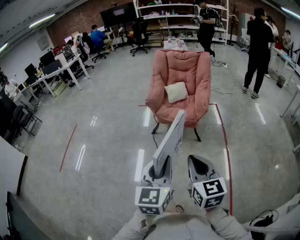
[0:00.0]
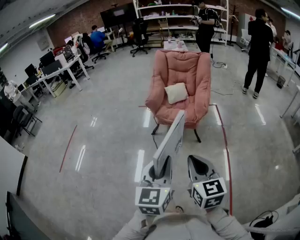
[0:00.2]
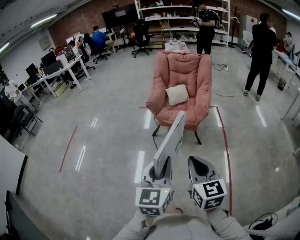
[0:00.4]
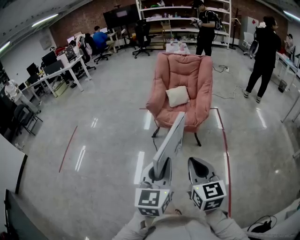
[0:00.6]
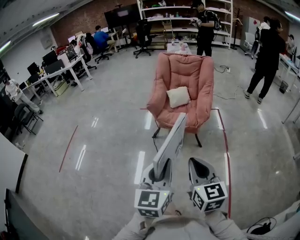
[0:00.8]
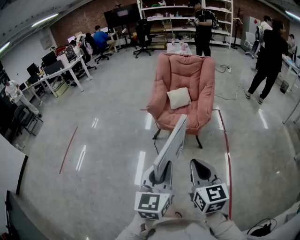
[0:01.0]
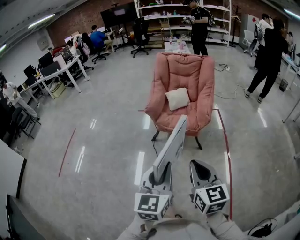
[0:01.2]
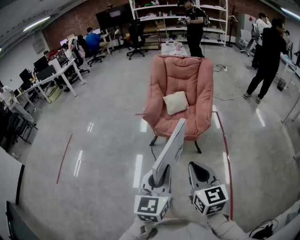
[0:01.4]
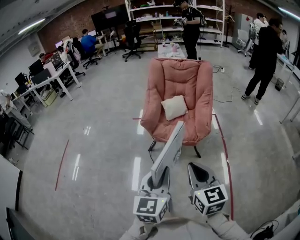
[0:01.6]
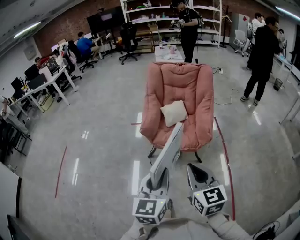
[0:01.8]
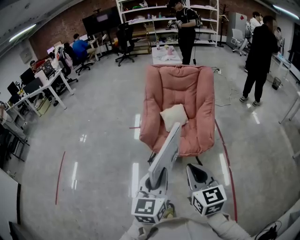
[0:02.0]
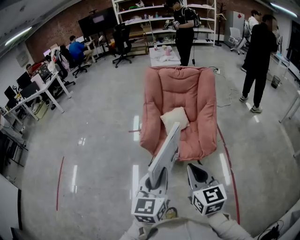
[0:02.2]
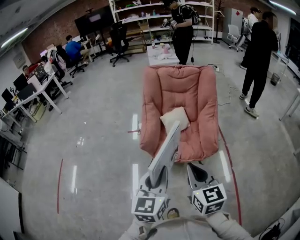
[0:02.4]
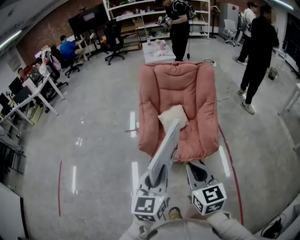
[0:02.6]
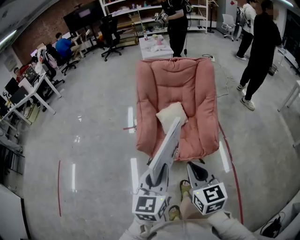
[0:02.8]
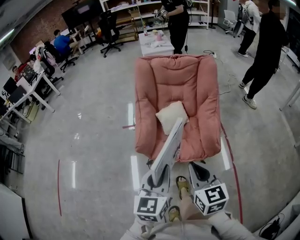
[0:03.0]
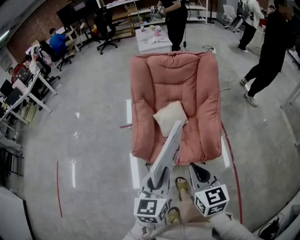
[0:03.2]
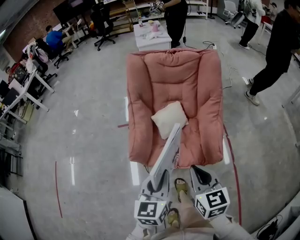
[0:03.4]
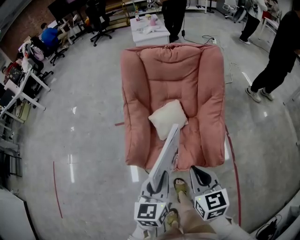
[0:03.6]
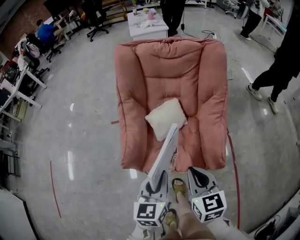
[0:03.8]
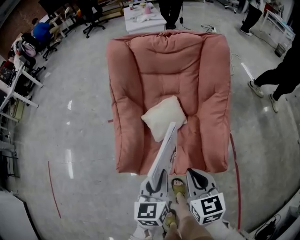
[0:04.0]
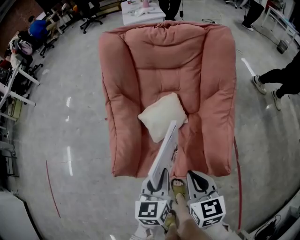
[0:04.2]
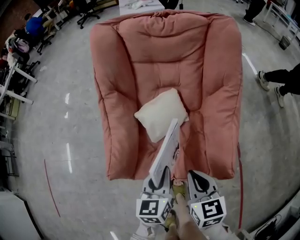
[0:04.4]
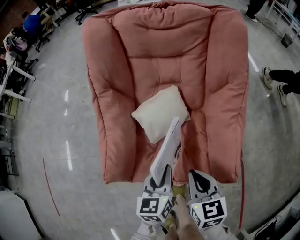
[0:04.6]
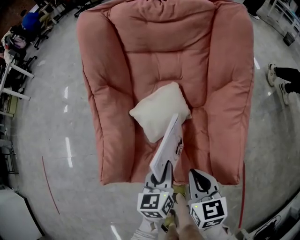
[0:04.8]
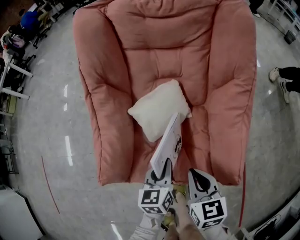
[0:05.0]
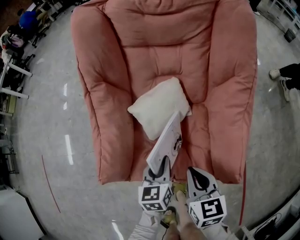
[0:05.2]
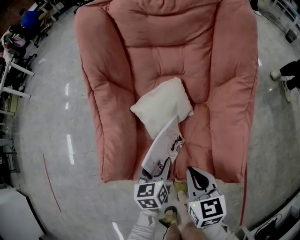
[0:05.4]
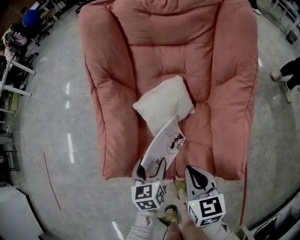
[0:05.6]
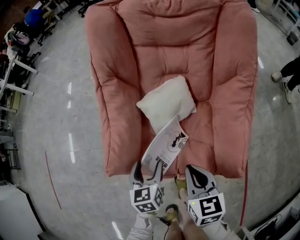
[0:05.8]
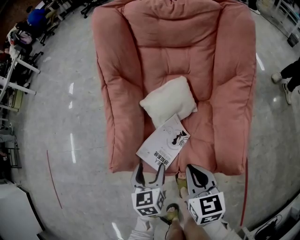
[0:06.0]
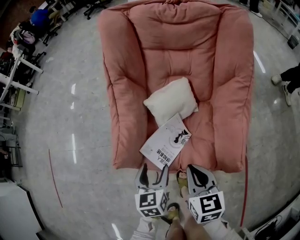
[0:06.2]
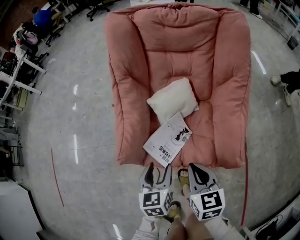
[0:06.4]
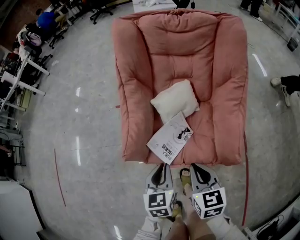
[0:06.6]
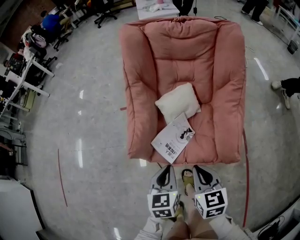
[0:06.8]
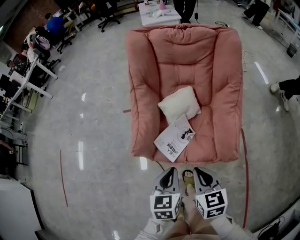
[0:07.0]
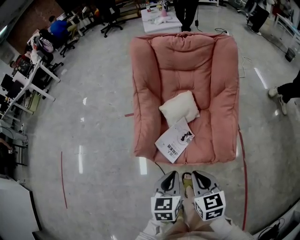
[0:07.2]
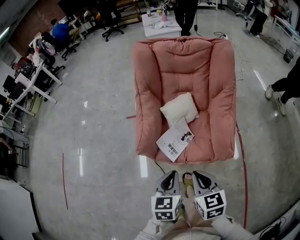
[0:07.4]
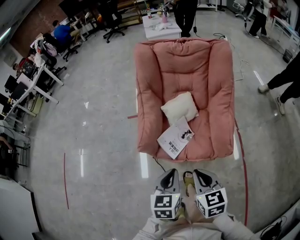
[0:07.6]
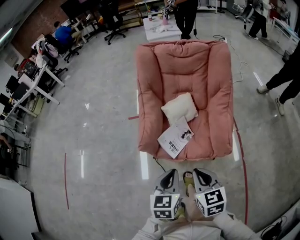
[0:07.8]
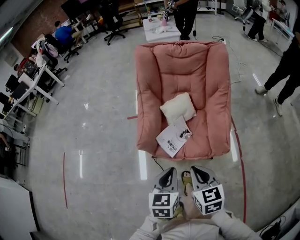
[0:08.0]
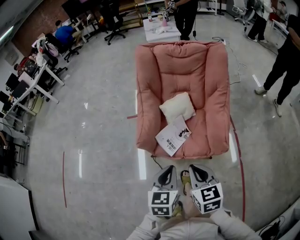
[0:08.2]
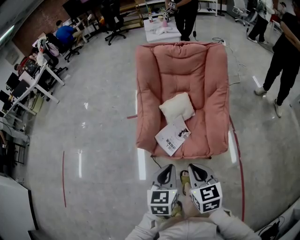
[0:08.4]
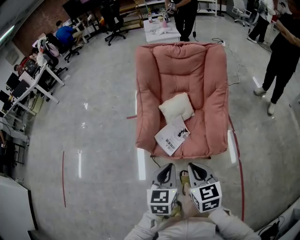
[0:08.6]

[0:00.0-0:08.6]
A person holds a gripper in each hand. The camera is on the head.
0:00.0 to 0:01.4: The grippers both shift forward by about 15 cm.
0:01.4 to 0:02.8: Both grippers travel together forward, roughly 30 cm.
0:02.8 to 0:04.4: The right gripper travels forward and downward by some 35 cm. Meanwhile the left gripper travels downward and forward by some 40 cm, and swivels some 20 degrees.
0:04.4 to 0:05.8: The right gripper moves approximately 5 cm; the left gripper heads downward and to the left, covering about 15 cm, and opens its fingers.
0:05.8 to 0:07.2: The left gripper goes about 25 cm upward and backward, and closes up, while the right gripper moves backward and upward, roughly 20 cm.
0:07.2 to 0:08.6: The two grippers go some 10 cm upward and backward.

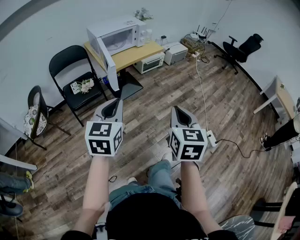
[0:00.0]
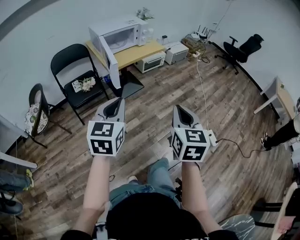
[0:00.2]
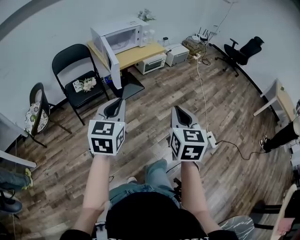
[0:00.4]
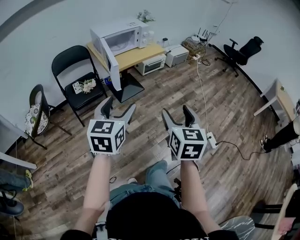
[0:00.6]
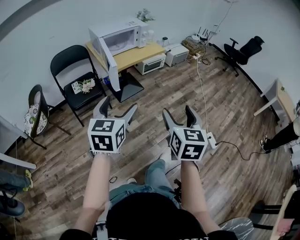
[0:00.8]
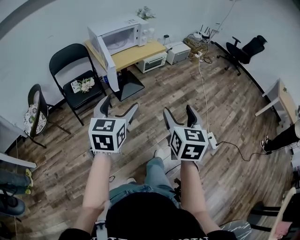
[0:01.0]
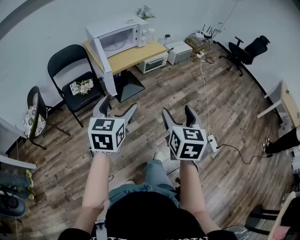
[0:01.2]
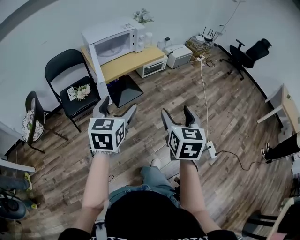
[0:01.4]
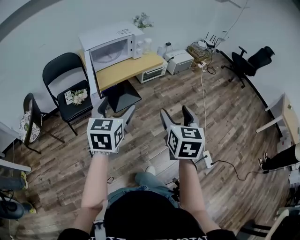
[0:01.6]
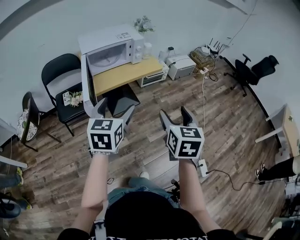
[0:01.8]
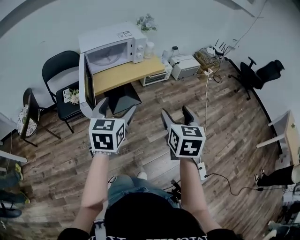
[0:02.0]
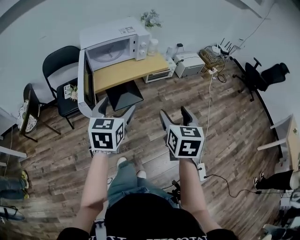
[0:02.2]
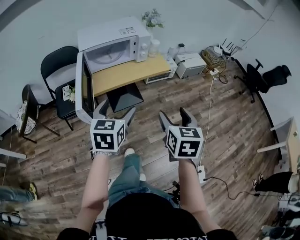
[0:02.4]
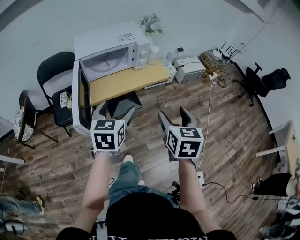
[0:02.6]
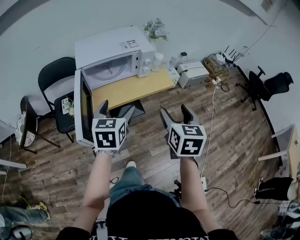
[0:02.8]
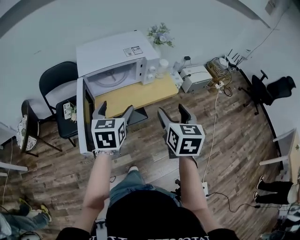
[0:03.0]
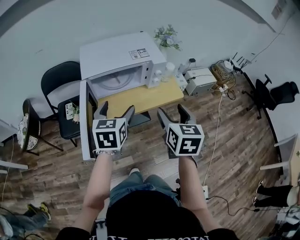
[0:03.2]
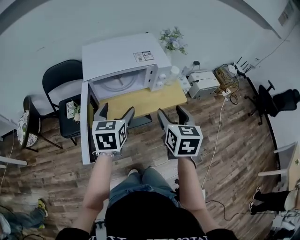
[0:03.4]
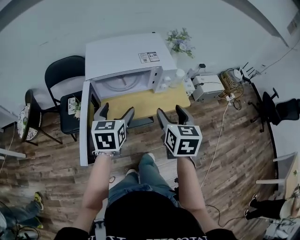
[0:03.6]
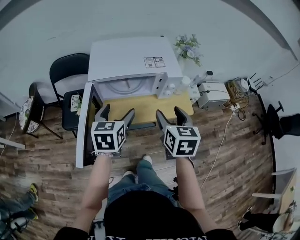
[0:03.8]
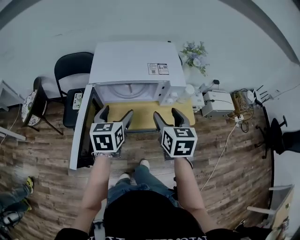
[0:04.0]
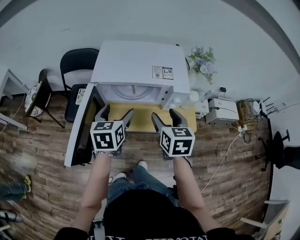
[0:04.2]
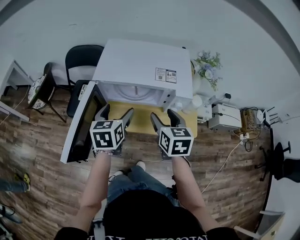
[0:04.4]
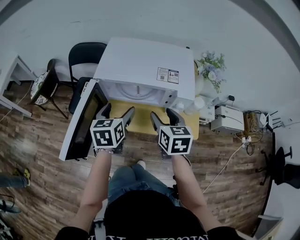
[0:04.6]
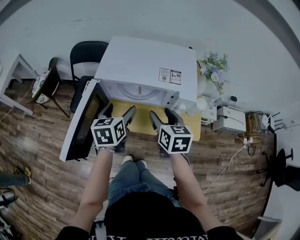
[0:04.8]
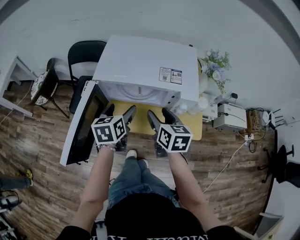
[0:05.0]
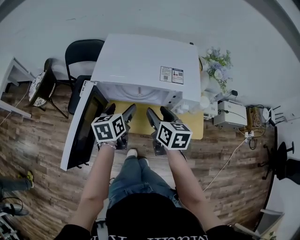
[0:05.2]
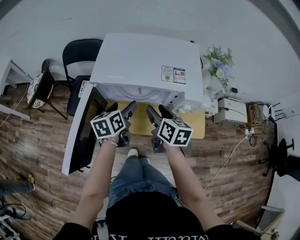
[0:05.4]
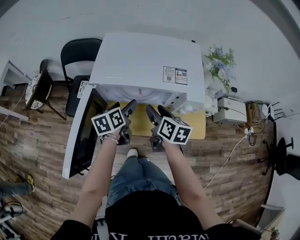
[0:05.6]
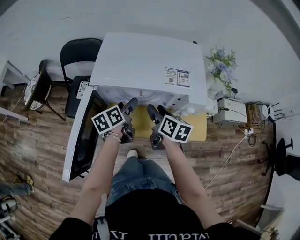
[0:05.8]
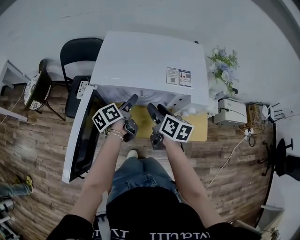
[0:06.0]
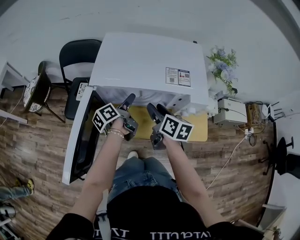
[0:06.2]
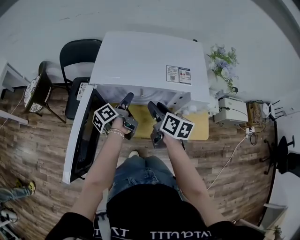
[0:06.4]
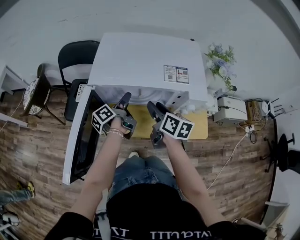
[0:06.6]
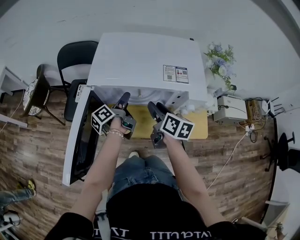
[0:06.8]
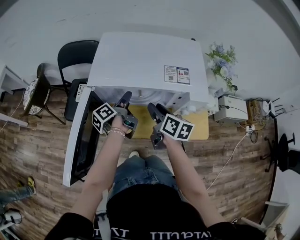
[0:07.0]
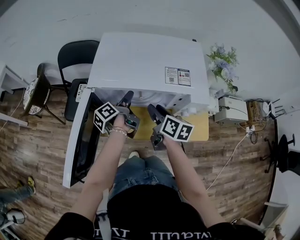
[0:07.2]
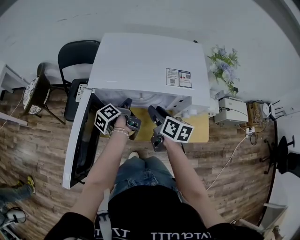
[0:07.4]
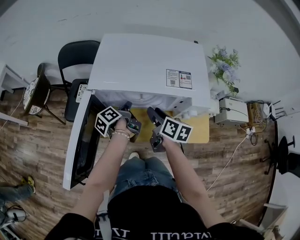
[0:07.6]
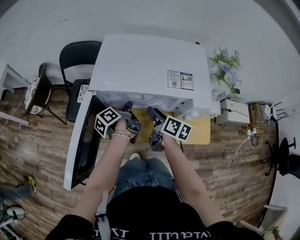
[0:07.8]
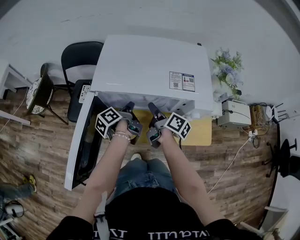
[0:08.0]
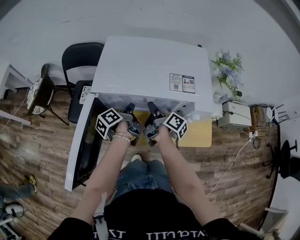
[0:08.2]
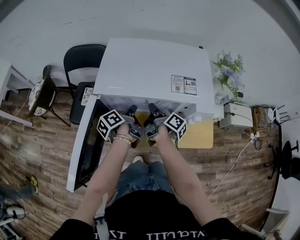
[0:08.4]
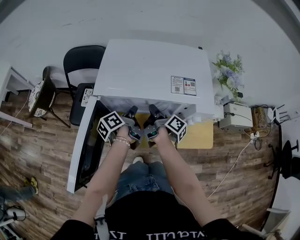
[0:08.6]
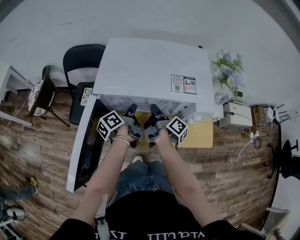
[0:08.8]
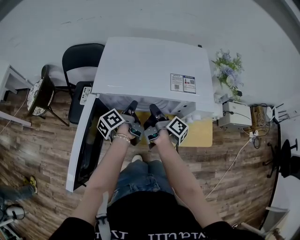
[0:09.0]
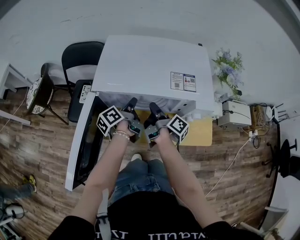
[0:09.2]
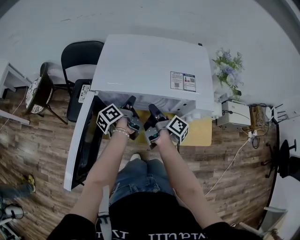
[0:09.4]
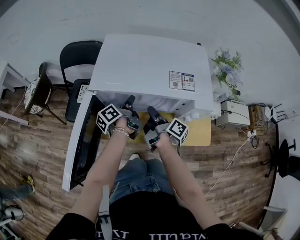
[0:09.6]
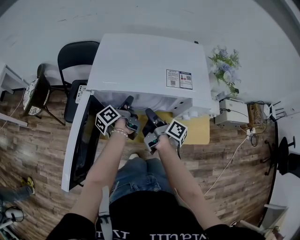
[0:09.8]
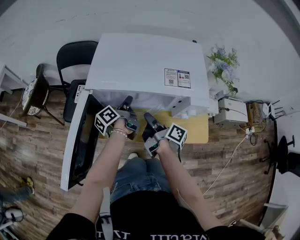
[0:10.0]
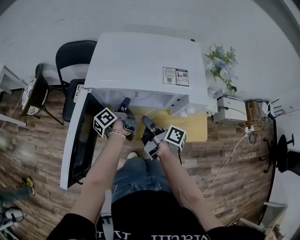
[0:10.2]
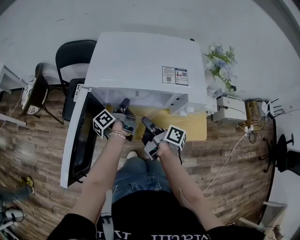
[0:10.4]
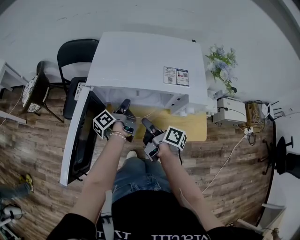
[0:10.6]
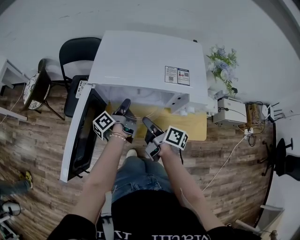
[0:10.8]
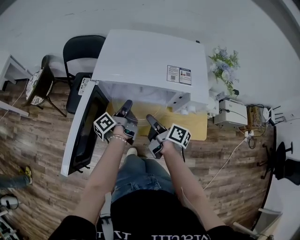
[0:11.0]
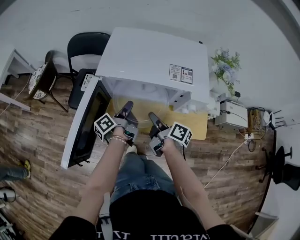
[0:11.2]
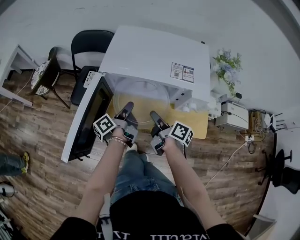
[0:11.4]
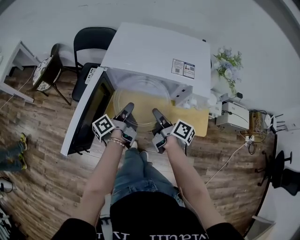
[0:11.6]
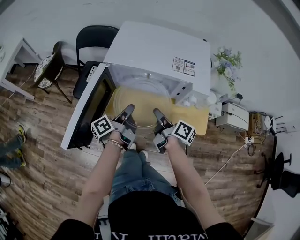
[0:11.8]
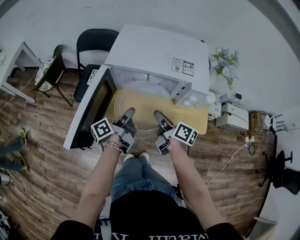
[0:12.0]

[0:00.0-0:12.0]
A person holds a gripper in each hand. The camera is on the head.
0:00.0 to 0:01.6: Both grippers move forward, approximately 20 cm. The right gripper opens its fingers. The left gripper opens.
0:01.6 to 0:03.0: The grippers both shift forward by roughly 30 cm.
0:03.0 to 0:04.4: The left gripper changes place by some 15 cm, and turns by about 30 degrees; the right gripper changes place by about 25 cm, and swivels roughly 30 degrees.
0:04.4 to 0:06.0: Both grippers move downward and forward, roughly 15 cm. The right gripper rotates about 30 degrees, while the left gripper twists about 50 degrees counterclockwise, seen from behind.
0:06.0 to 0:07.6: The left gripper changes its angle by some 20 degrees, and closes up.
0:07.6 to 0:09.0: The right gripper rolls clockwise, seen from behind, by approximately 40 degrees, and closes.
0:09.0 to 0:10.4: The right gripper heads backward, covering approximately 10 cm.
0:10.4 to 0:12.0: The right gripper shifts some 5 cm backward, and swivels some 20 degrees; the left gripper shifts approximately 15 cm backward and upward.

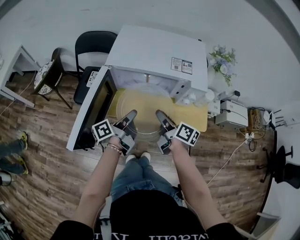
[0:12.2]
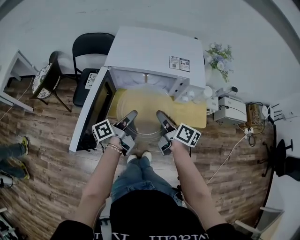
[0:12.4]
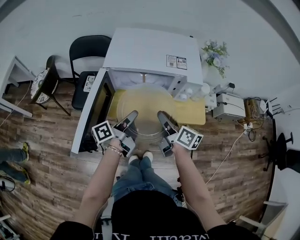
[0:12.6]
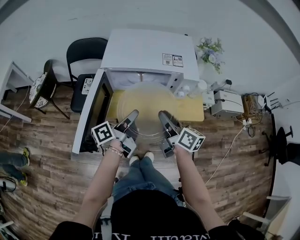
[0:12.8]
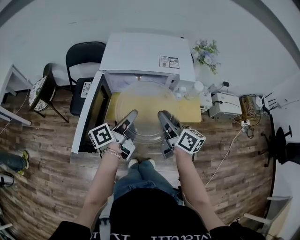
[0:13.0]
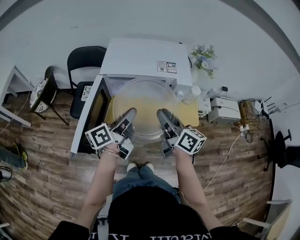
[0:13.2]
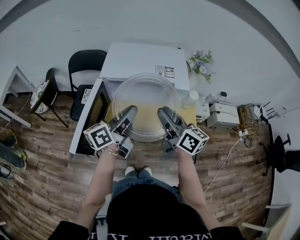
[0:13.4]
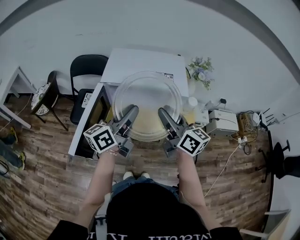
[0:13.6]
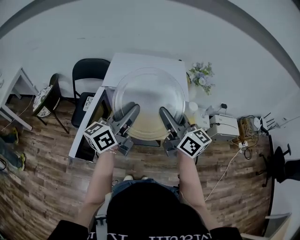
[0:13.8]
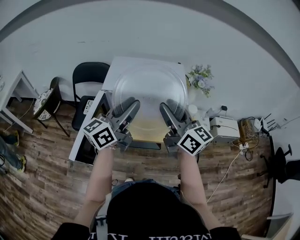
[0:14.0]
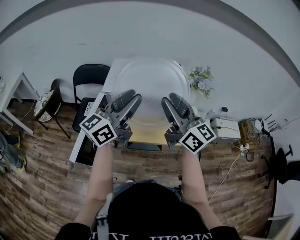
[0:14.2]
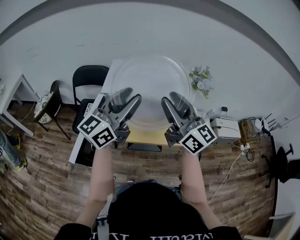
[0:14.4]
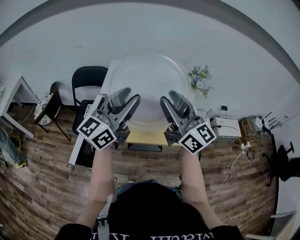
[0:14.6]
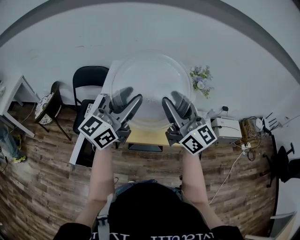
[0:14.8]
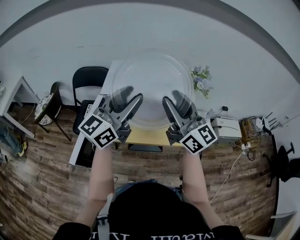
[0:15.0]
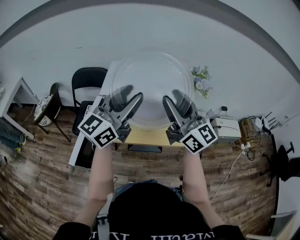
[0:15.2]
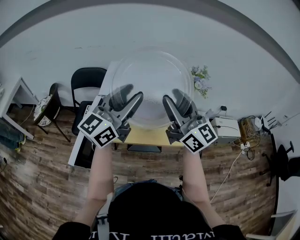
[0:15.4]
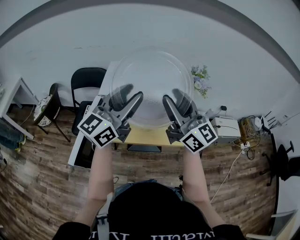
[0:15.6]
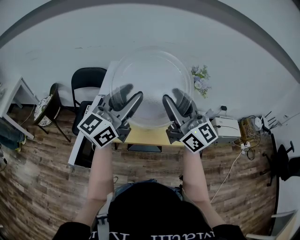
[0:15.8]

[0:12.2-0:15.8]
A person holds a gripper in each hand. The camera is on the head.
0:12.2 to 0:14.0: The two grippers go approximately 25 cm upward. The left gripper twists roughly 50 degrees clockwise, seen from behind; the right gripper rotates around the line of its fingers by about 50 degrees, counterclockwise from behind.
0:14.0 to 0:15.8: Both grippers travel together upward, some 5 cm. The left gripper rotates roughly 20 degrees.
